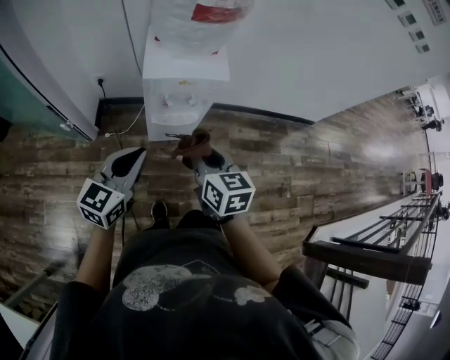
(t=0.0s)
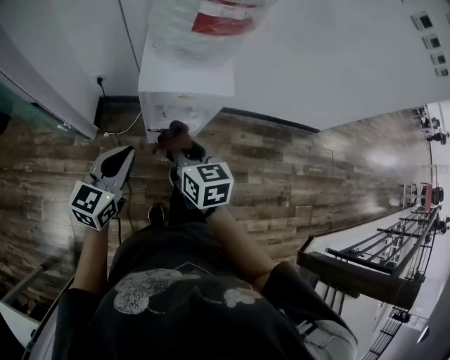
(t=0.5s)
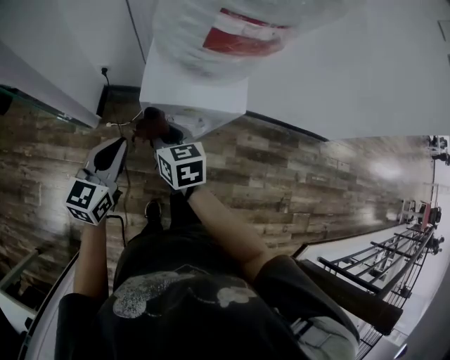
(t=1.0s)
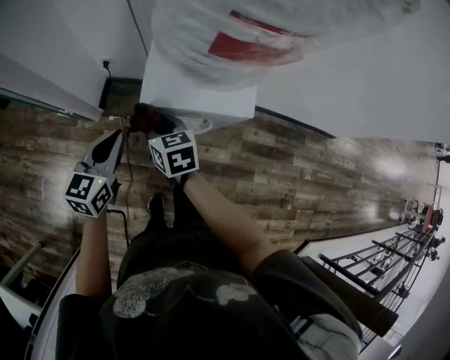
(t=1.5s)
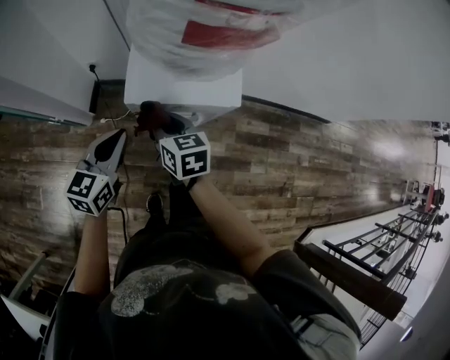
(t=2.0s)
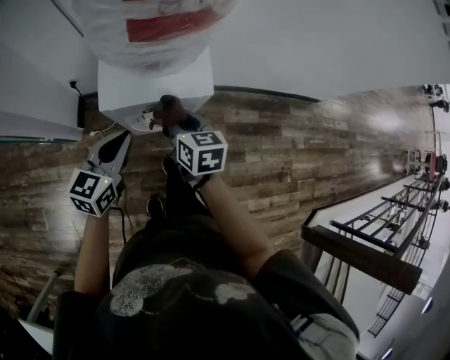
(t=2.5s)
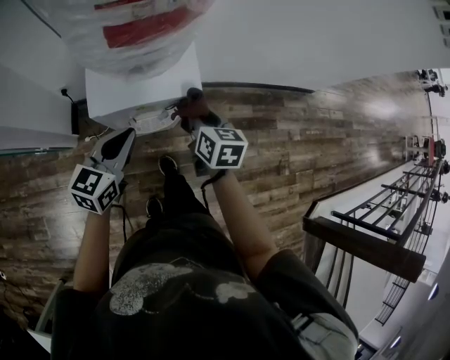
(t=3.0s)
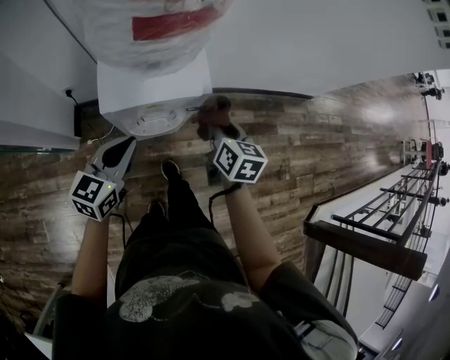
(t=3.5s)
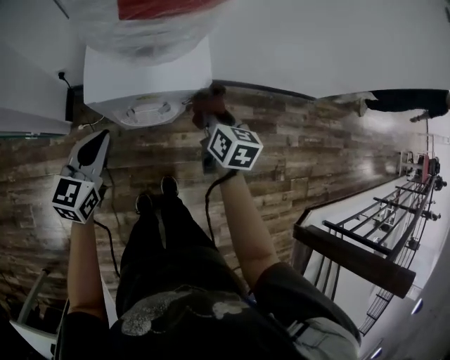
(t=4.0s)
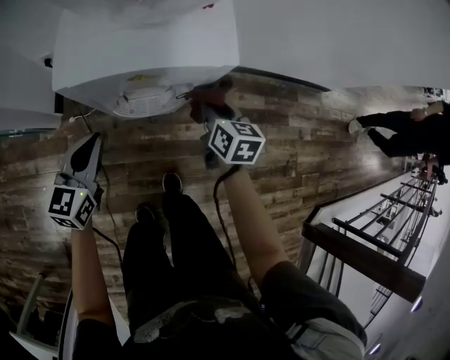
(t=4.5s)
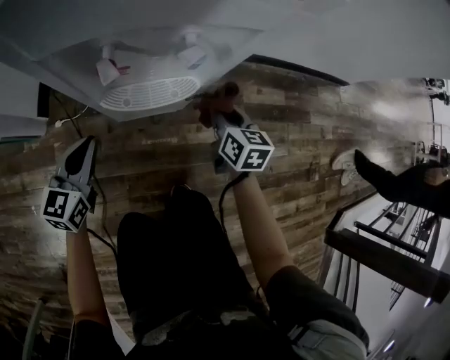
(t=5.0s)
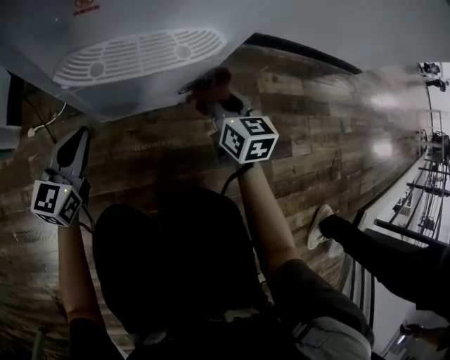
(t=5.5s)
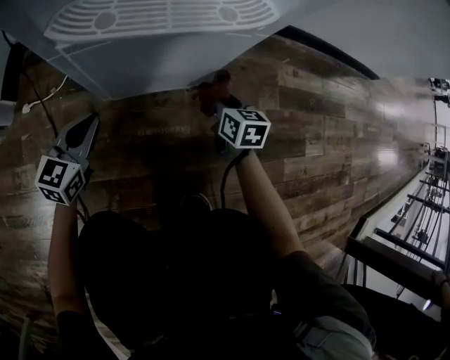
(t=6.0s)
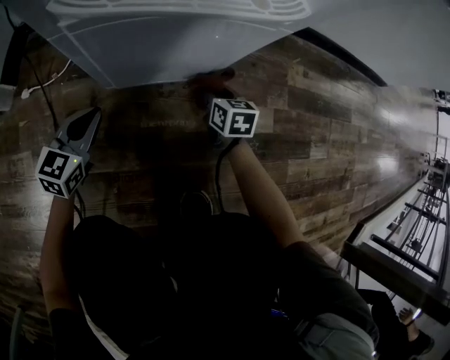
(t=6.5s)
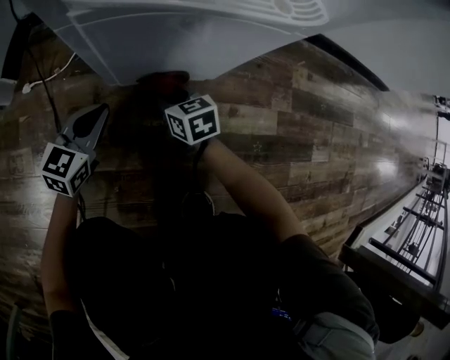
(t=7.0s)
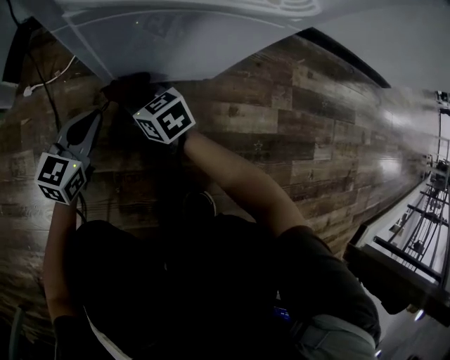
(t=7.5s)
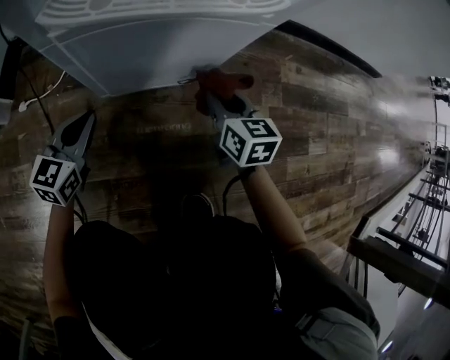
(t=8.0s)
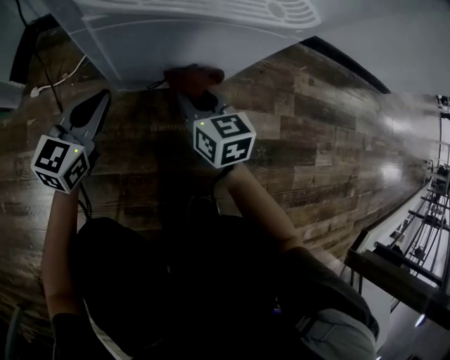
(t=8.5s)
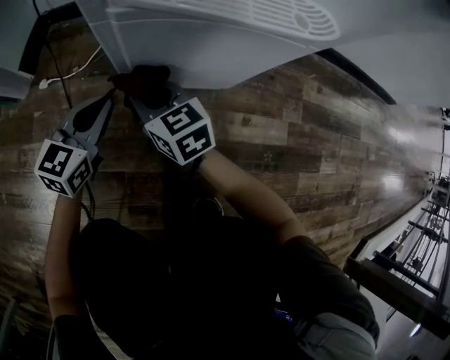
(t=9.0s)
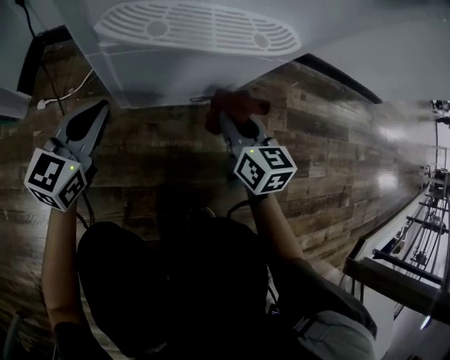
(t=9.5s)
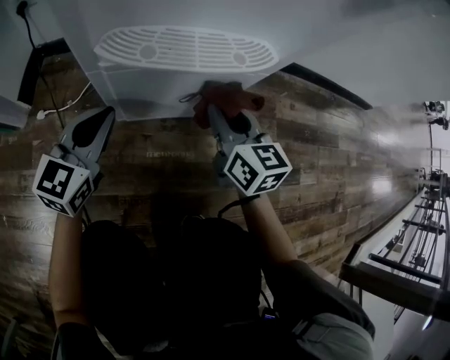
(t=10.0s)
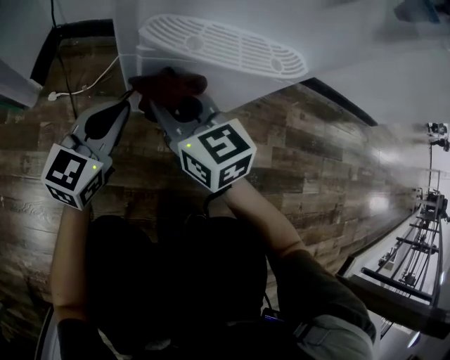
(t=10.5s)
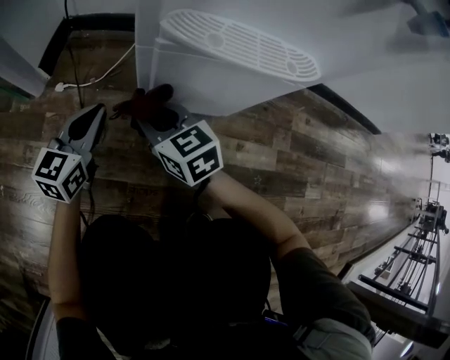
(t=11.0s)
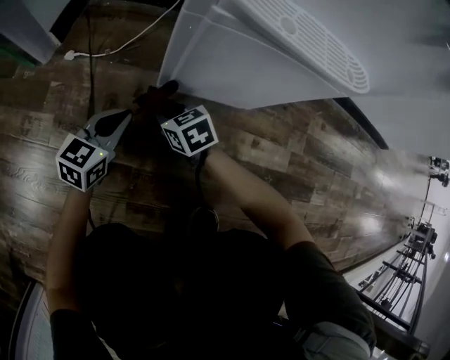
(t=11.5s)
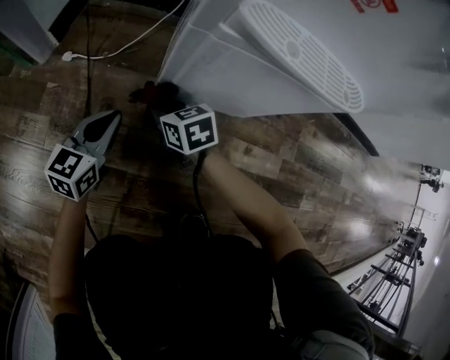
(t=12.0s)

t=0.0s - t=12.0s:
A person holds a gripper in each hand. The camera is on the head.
t=0.0s - t=2.0s: Both grippers move forward and downward, roughly 20 cm.
t=2.0s - t=4.0s: The right gripper shifts about 25 cm to the right, and rotates approximately 30 degrees.
t=4.0s - t=6.0s: The grippers both shift downward by about 60 cm.
t=6.0s - t=8.0s: The right gripper shifts some 5 cm upward, and reaches about 25 cm to the left, then returns.
t=8.0s - t=10.0s: The grippers both shift upward by about 15 cm. The right gripper goes to the left and returns, approximately 25 cm each way.
t=10.0s - t=12.0s: The left gripper travels downward and to the left by roughly 15 cm, and swivels about 20 degrees, while the right gripper is displaced to the left and downward by roughly 30 cm, and rotates about 40 degrees.

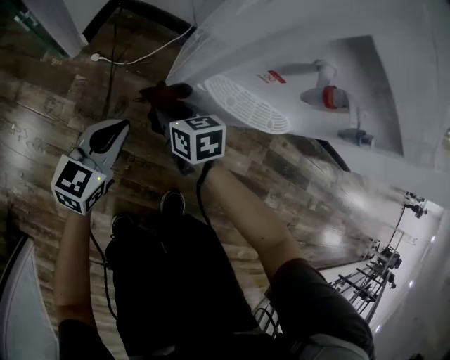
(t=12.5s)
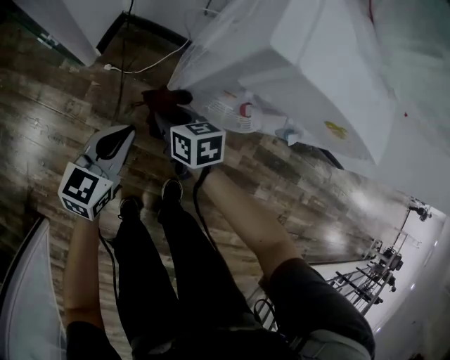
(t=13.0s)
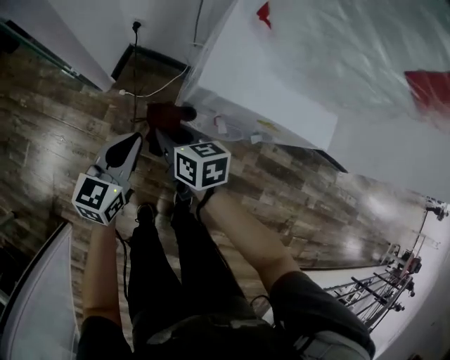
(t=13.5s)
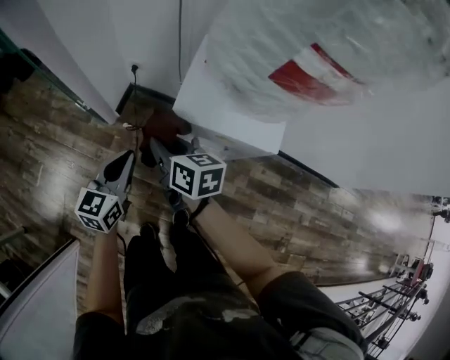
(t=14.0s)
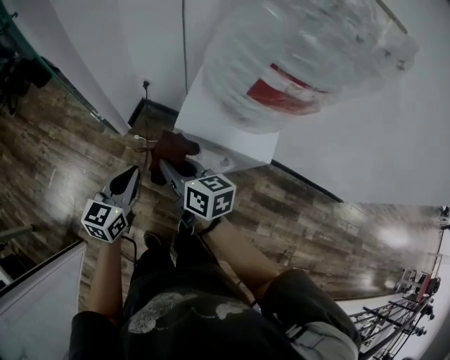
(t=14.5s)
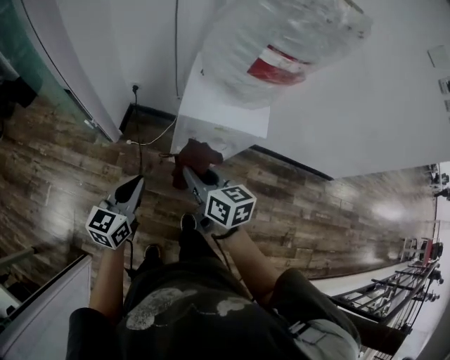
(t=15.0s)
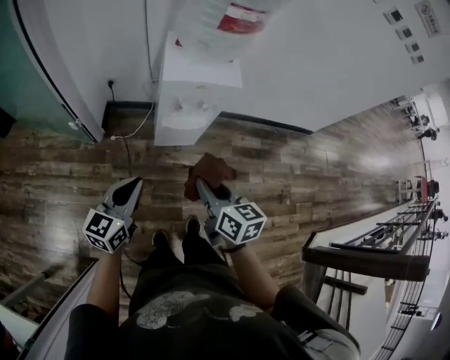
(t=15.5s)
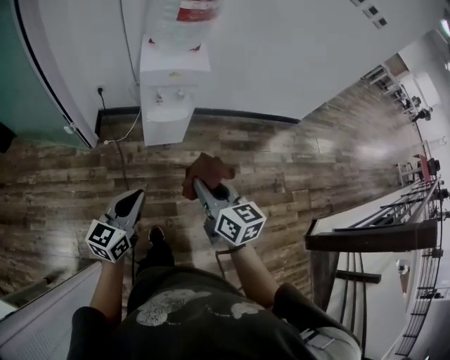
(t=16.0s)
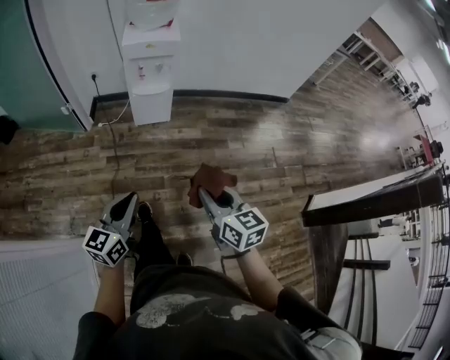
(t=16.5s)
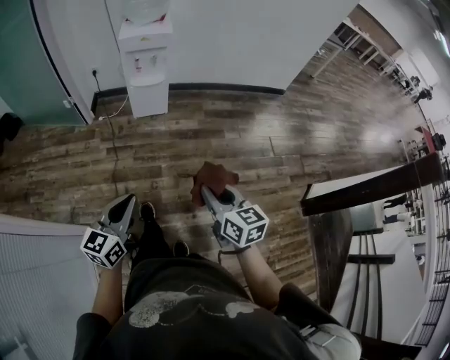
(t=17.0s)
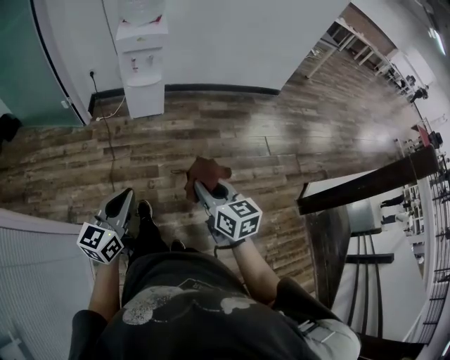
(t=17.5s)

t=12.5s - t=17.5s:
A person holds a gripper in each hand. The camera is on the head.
t=12.5s - t=15.0s: Both grippers travel together upward, about 50 cm. The right gripper swivels approximately 30 degrees.
t=15.0s - t=17.5s: The two grippers travel together, backward and to the right, about 60 cm. The right gripper changes its angle by some 20 degrees.

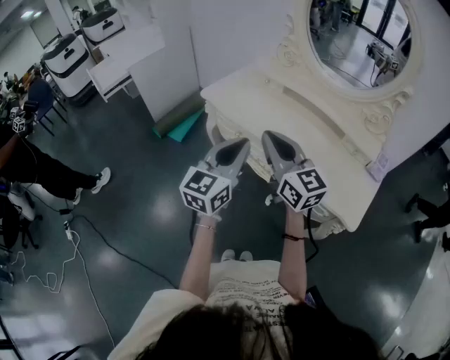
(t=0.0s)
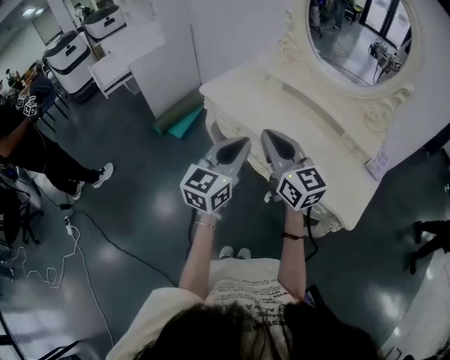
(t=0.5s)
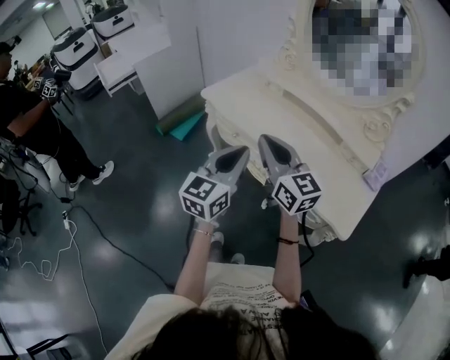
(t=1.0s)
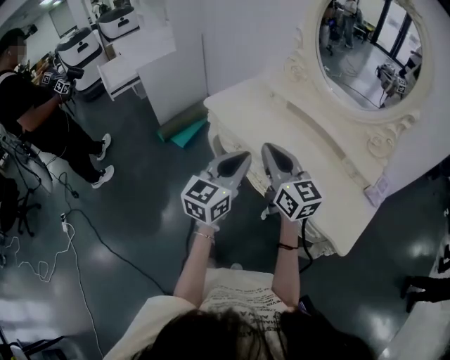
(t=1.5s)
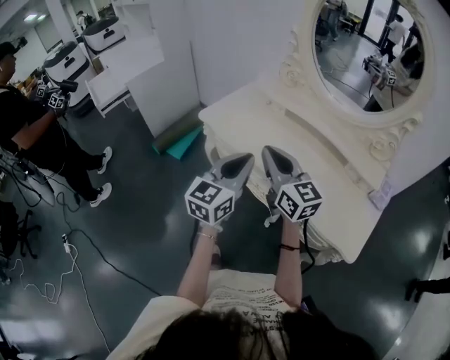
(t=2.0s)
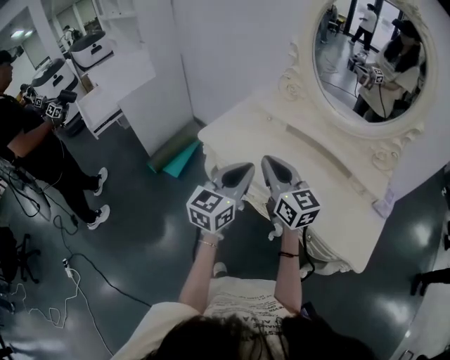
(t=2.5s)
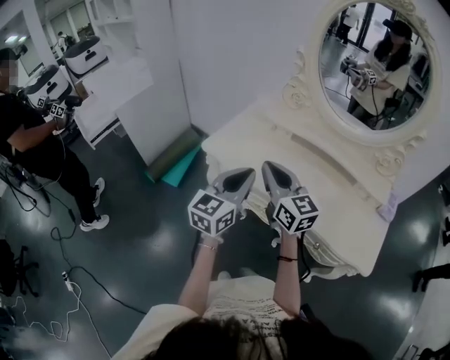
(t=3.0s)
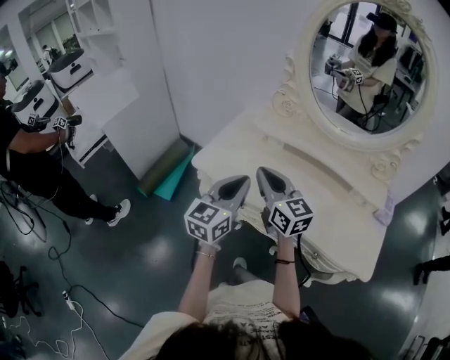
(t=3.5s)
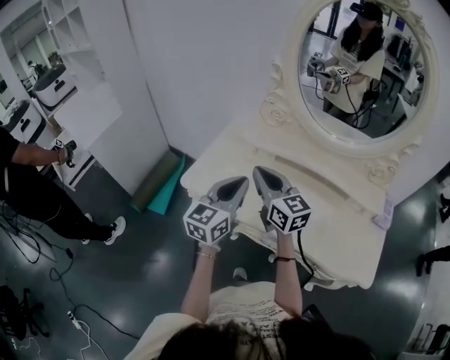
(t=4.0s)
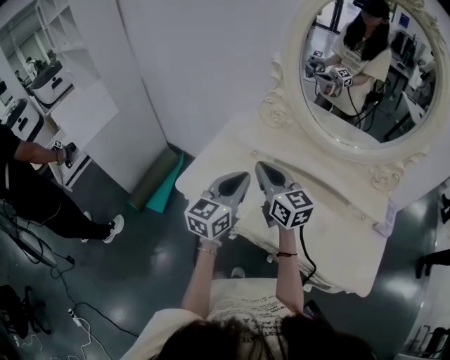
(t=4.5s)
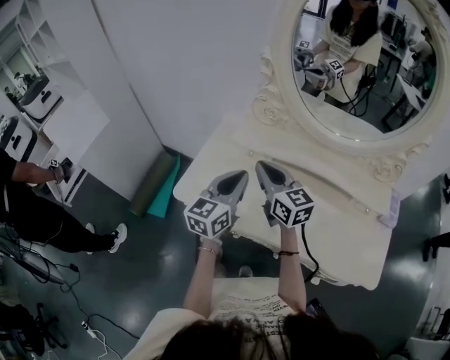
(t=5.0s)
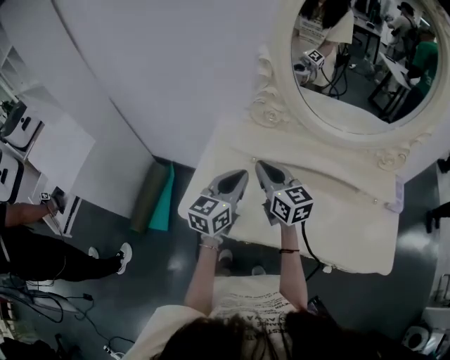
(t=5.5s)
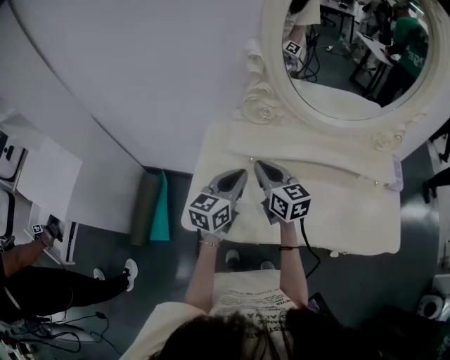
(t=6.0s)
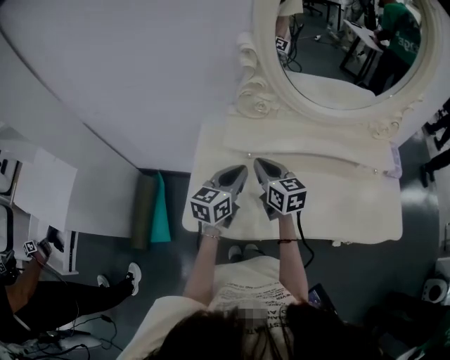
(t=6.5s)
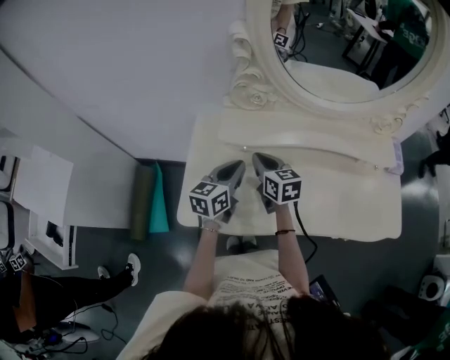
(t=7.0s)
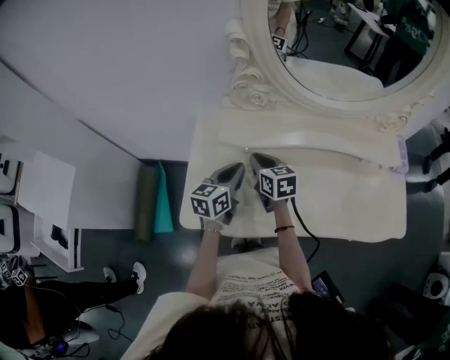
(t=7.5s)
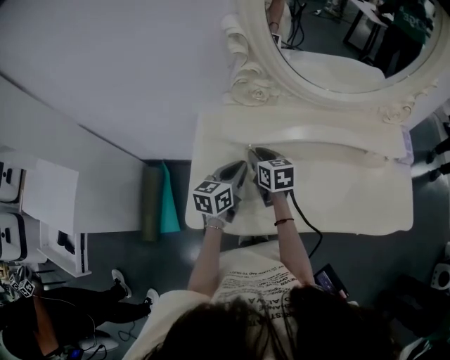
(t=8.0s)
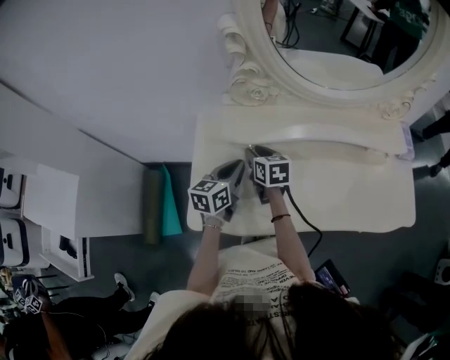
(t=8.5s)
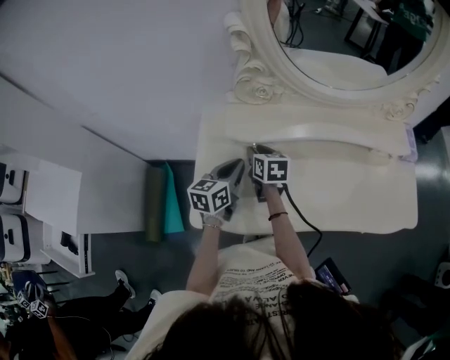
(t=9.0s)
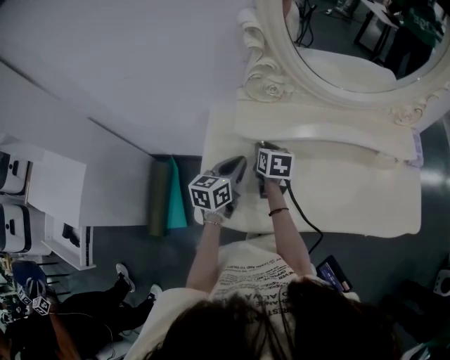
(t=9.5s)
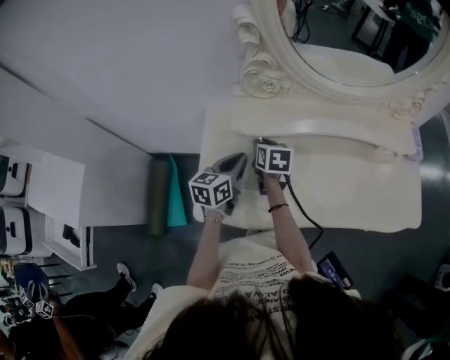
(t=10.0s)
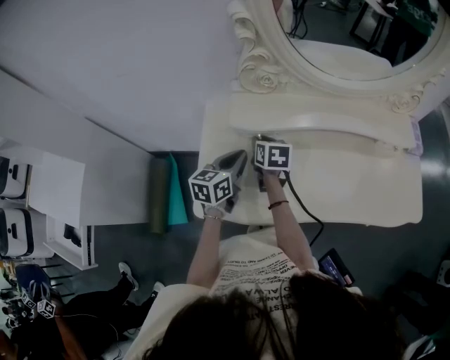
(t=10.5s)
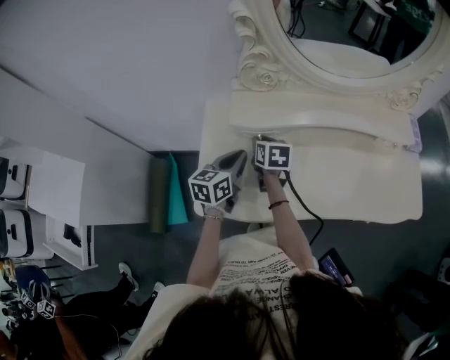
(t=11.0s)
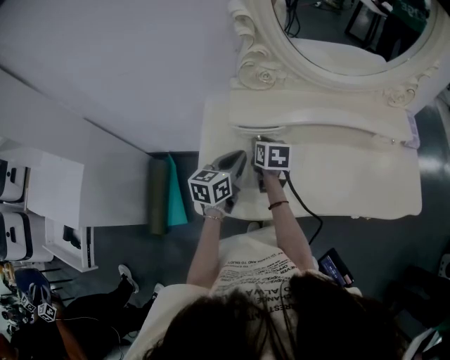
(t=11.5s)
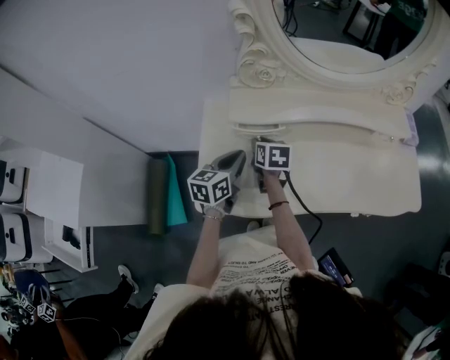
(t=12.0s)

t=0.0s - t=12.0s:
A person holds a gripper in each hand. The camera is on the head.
t=0.0s - t=2.0s: The two grippers go some 10 cm forward.
t=2.0s - t=4.0s: The grippers both shift forward by approximately 20 cm.
t=4.0s - t=6.0s: The two grippers go about 20 cm forward and downward. The left gripper changes its angle by approximately 20 degrees. Meanwhile the right gripper rotates roughly 20 degrees.
t=6.0s - t=8.0s: The left gripper travels downward by roughly 10 cm, while the right gripper moves downward and forward, approximately 15 cm, and rotates roughly 20 degrees.
t=8.0s - t=12.0s: There are only small adjustments of the grippers.
